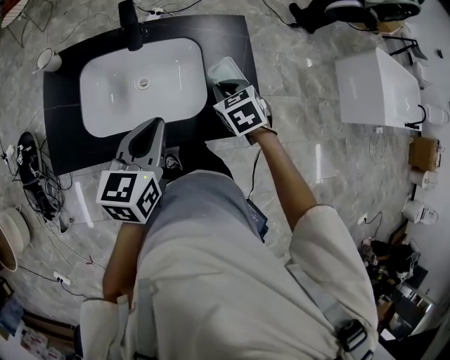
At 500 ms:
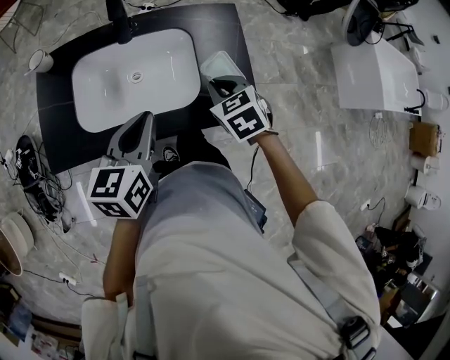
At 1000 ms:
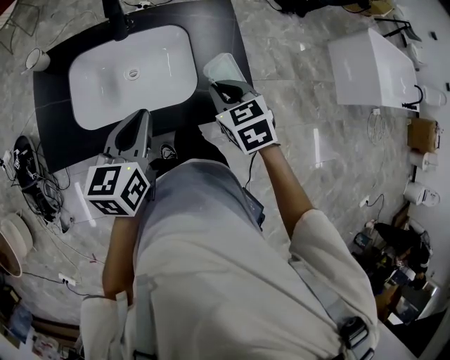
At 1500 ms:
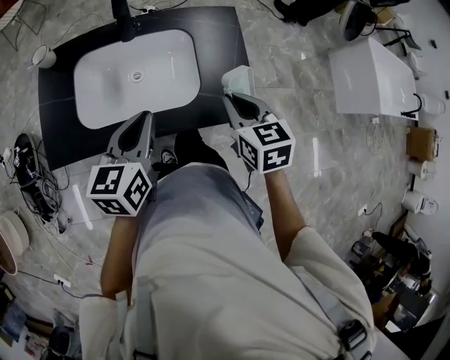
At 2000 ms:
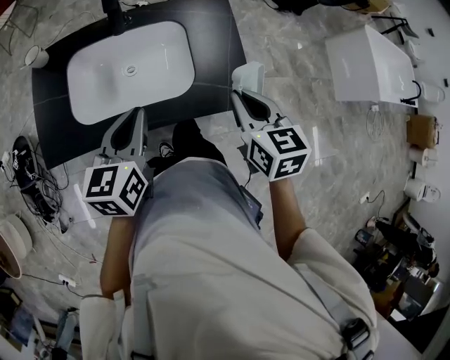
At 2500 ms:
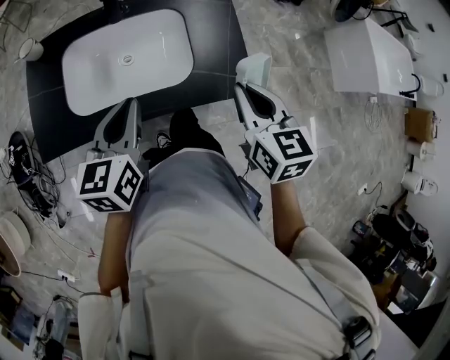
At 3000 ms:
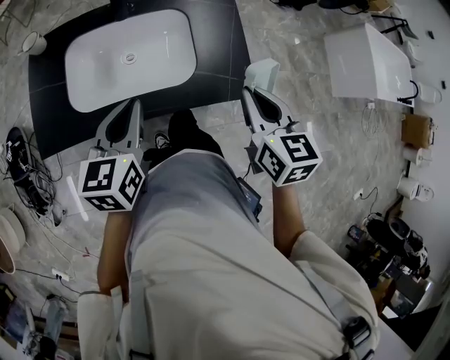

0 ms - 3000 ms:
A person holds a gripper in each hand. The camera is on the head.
0 ms - 1500 ms: The right gripper heads backward and upward, covering about 15 cm, and swivels approximately 20 degrees.
1500 ms - 3000 ms: The right gripper ends up about 5 cm from where it was.

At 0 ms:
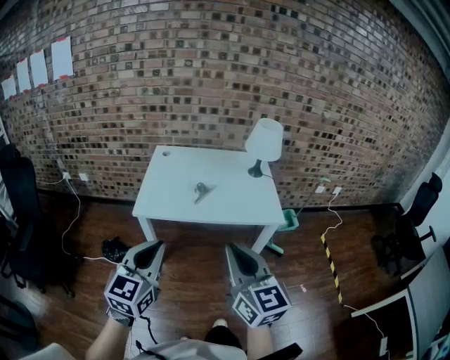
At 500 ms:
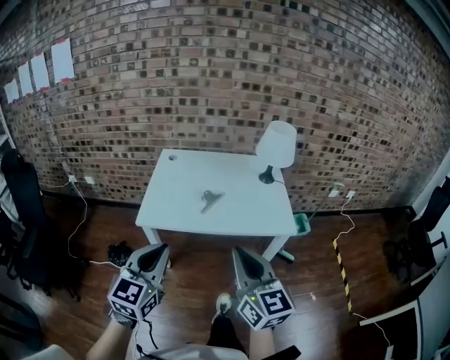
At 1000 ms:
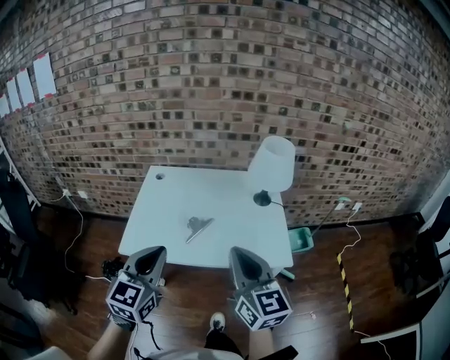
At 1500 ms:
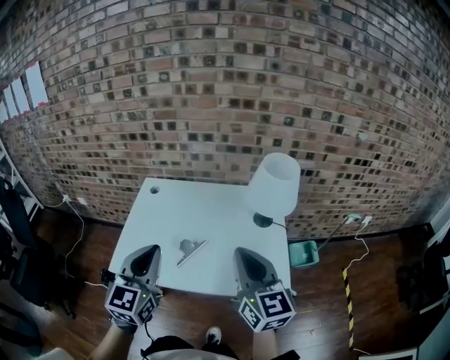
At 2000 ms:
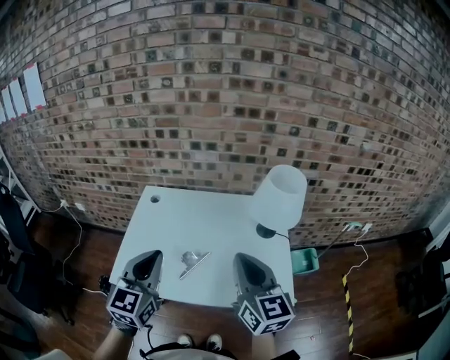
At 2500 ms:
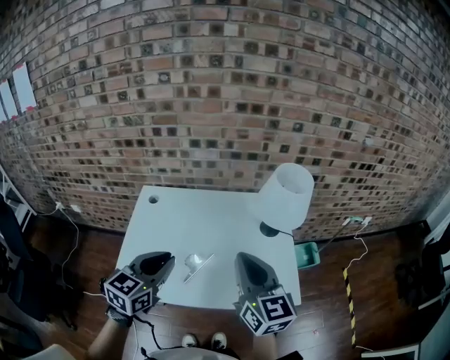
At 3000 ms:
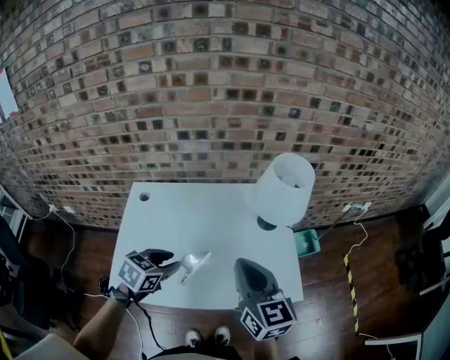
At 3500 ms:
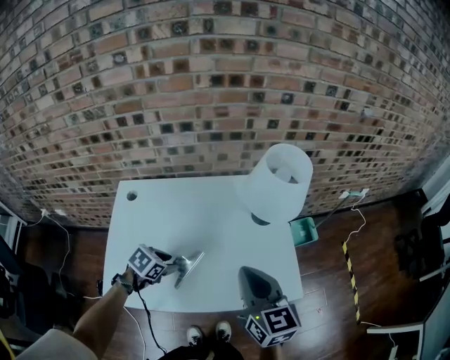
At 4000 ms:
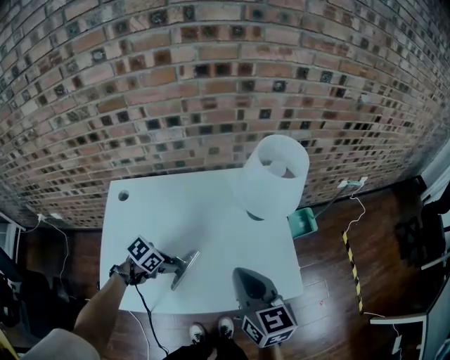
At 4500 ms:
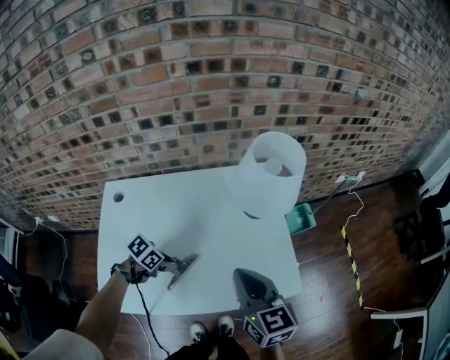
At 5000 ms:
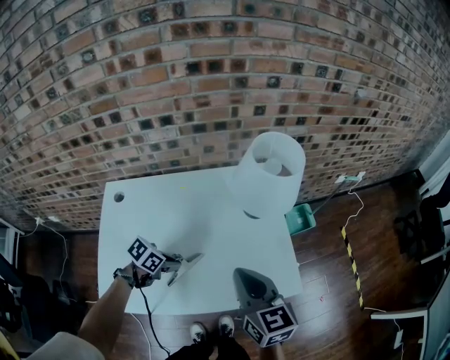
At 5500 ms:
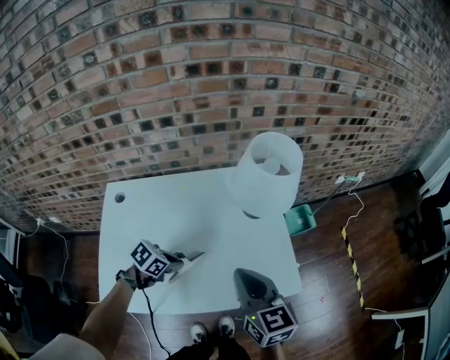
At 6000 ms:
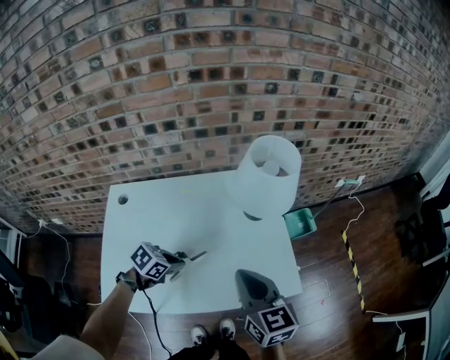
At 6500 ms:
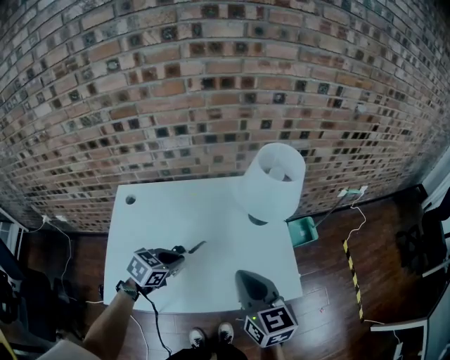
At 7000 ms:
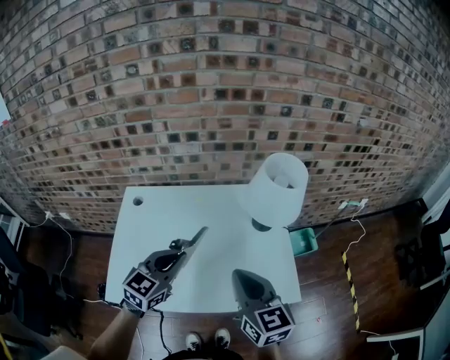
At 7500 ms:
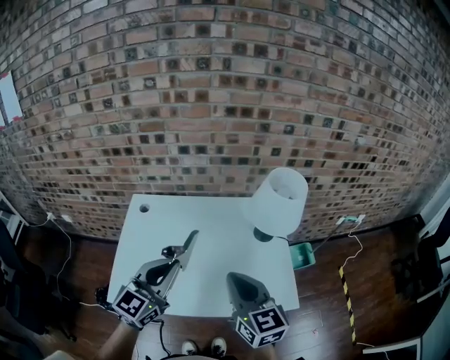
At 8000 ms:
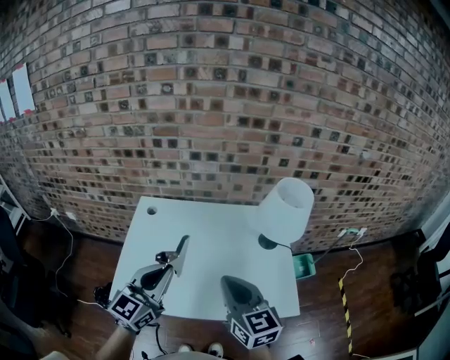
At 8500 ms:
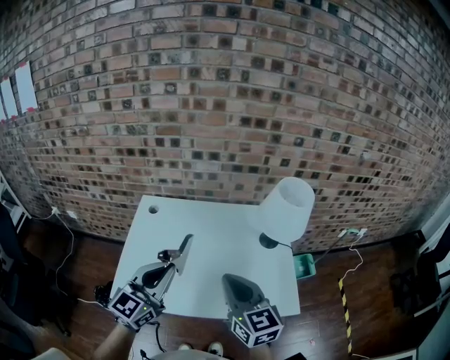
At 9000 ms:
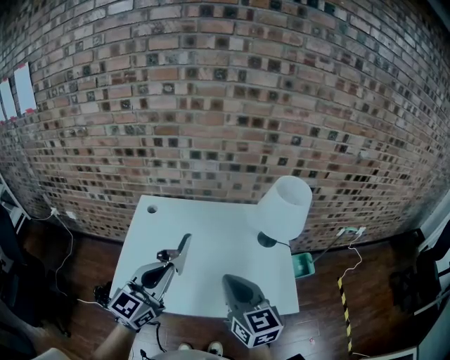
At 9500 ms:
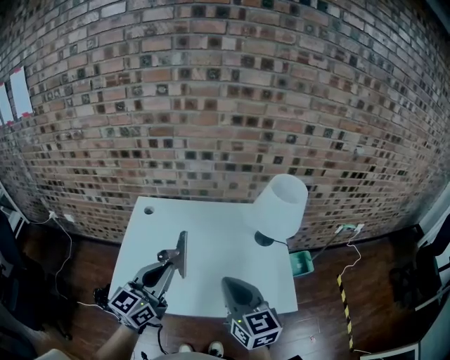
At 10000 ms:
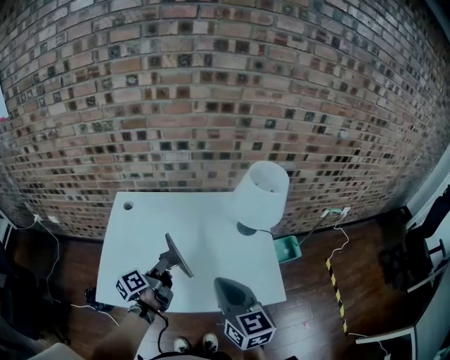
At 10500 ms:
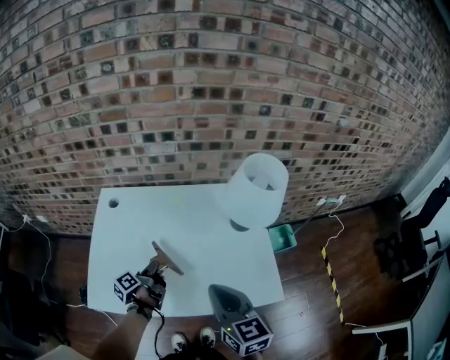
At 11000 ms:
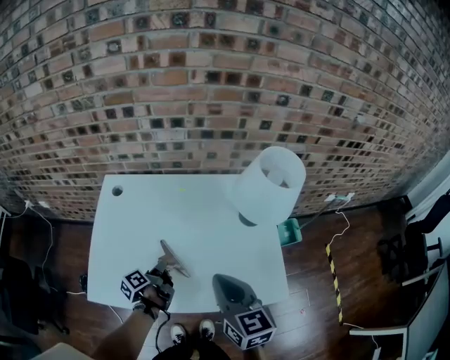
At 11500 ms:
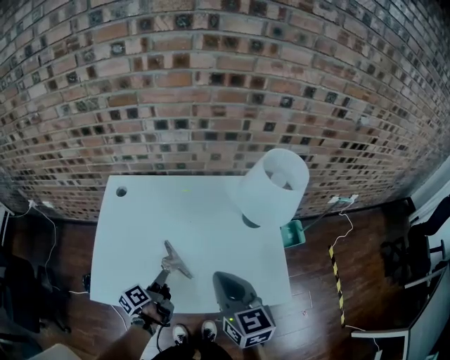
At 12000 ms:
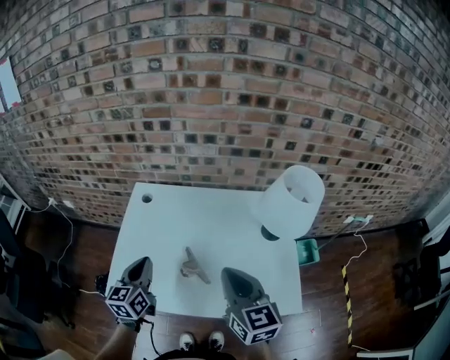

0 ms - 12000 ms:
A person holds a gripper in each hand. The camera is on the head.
0 ms - 2000 ms: Both grippers travel together forward, about 40 cm.
2000 ms - 4000 ms: The right gripper is displaced downward by roughly 10 cm, while the left gripper is displaced downward by roughly 35 cm, points its fingers about 60 degrees further downward, and opens up.
4000 ms - 6000 ms: The left gripper shifts by some 5 cm, and closes its fingers.
6000 ms - 8000 ms: The right gripper moves about 10 cm, while the left gripper moves upward, some 25 cm, and points its fingers about 60 degrees further upward.
8000 ms - 10000 ms: The left gripper is displaced downward and forward by about 20 cm, and twists some 70 degrees counterclockwise, seen from behind. Meanwhile the right gripper changes place by about 5 cm.
10000 ms - 12000 ms: The right gripper goes about 5 cm forward, while the left gripper shifts roughly 10 cm to the left, moves roughly 15 cm downward and comes back, rolls clockwise, seen from behind, by roughly 50 degrees, and opens and closes again.

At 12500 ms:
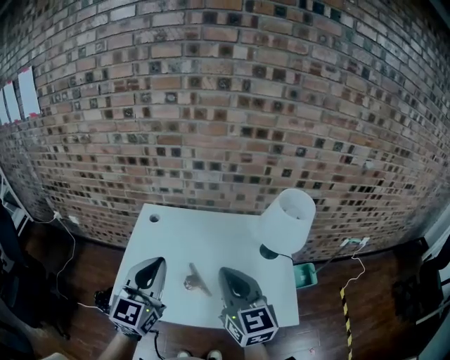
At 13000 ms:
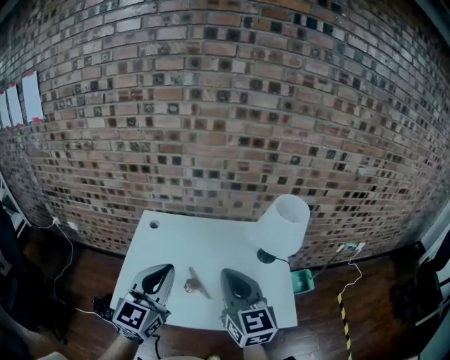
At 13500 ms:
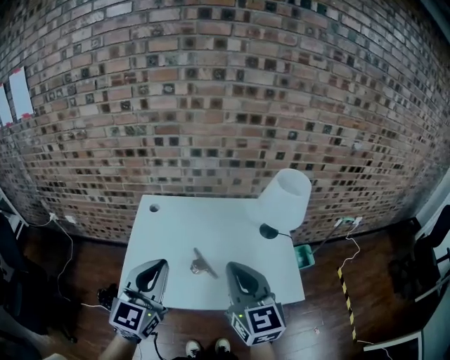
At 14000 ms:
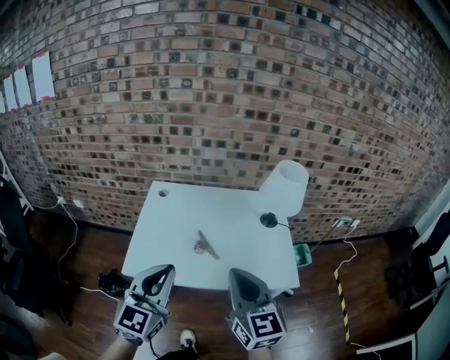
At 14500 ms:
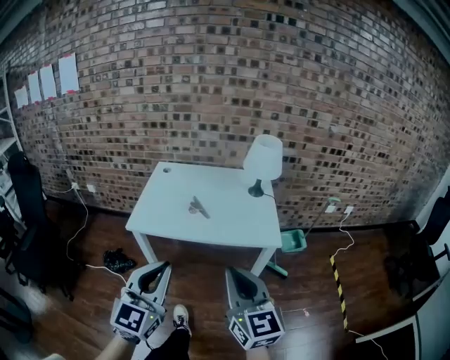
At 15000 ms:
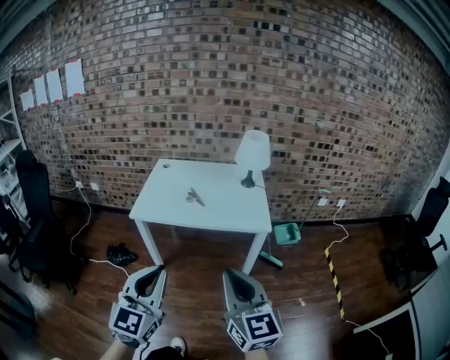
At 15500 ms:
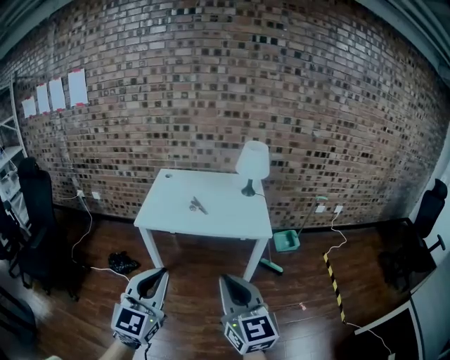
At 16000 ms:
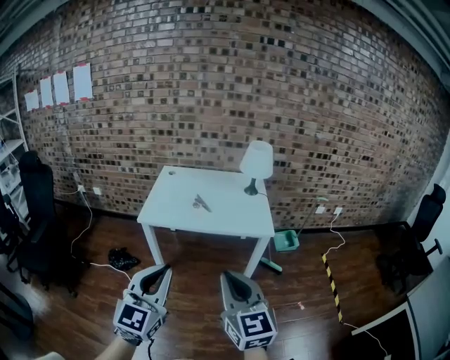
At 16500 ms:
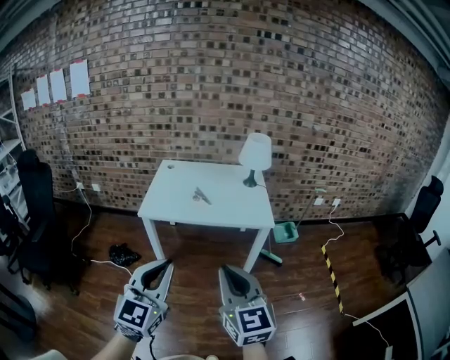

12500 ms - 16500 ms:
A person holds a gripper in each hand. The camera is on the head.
12500 ms - 14500 ms: The two grippers travel together, backward, approximately 40 cm.
14500 ms - 16500 ms: Both grippers travel together backward, roughly 15 cm.

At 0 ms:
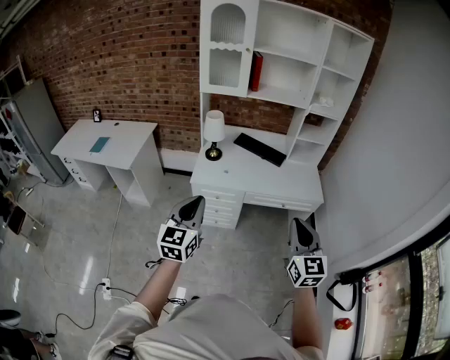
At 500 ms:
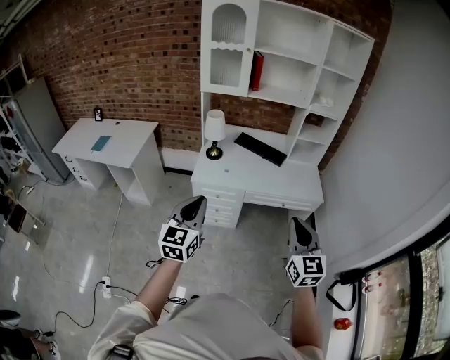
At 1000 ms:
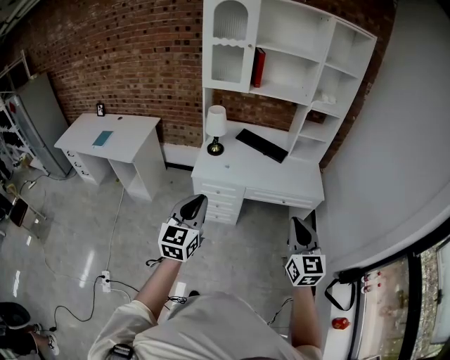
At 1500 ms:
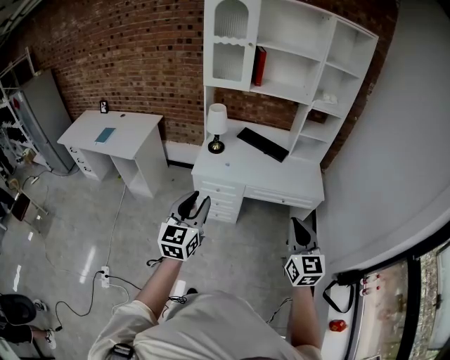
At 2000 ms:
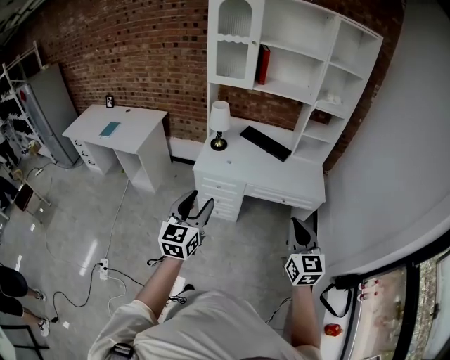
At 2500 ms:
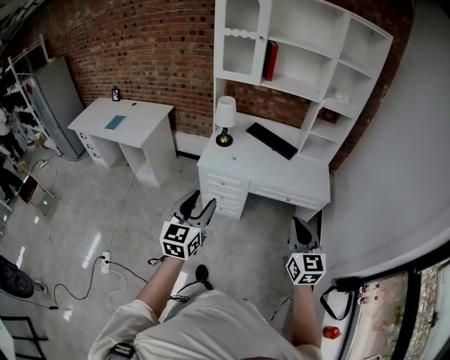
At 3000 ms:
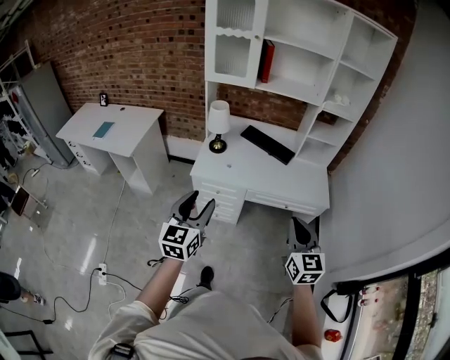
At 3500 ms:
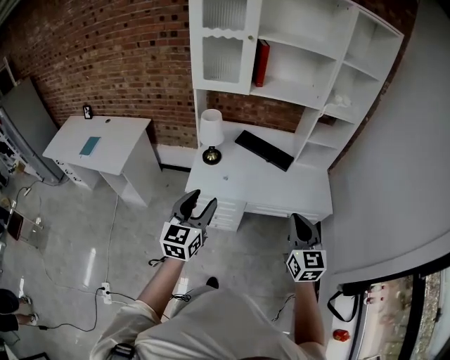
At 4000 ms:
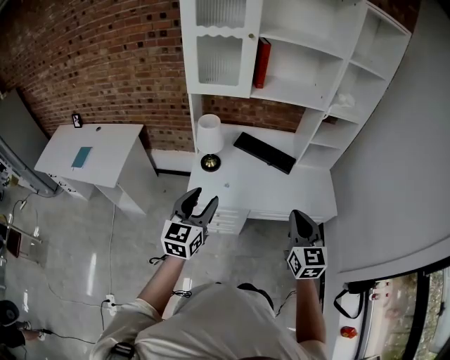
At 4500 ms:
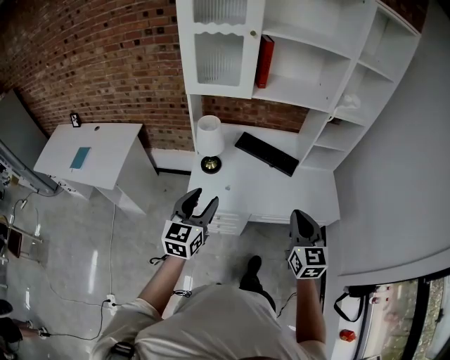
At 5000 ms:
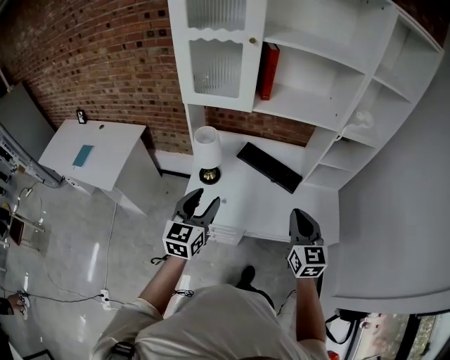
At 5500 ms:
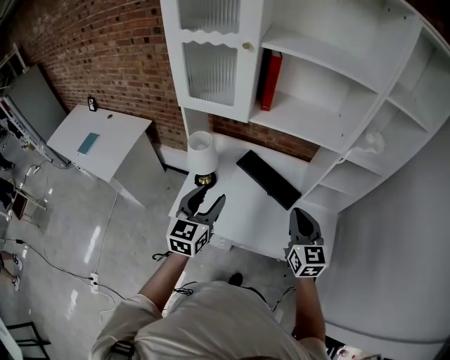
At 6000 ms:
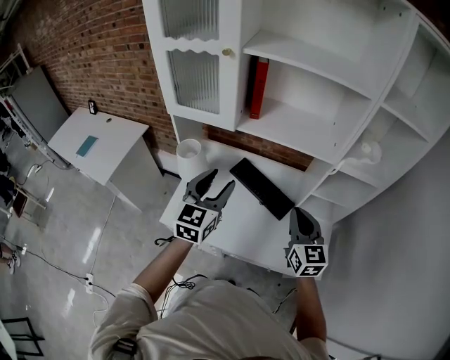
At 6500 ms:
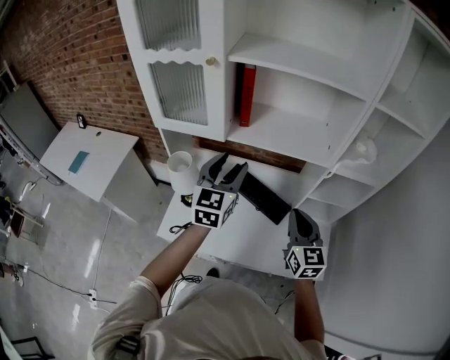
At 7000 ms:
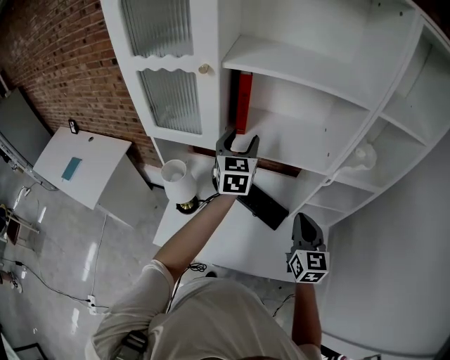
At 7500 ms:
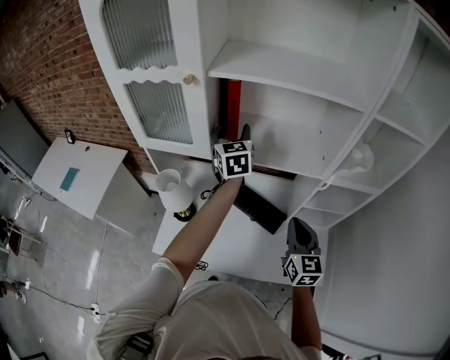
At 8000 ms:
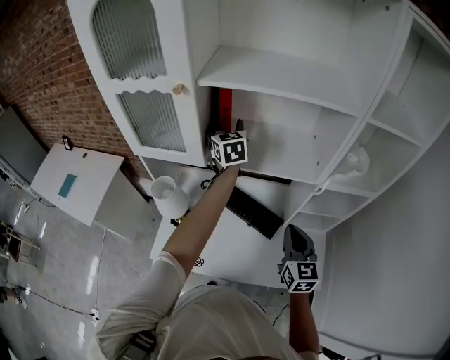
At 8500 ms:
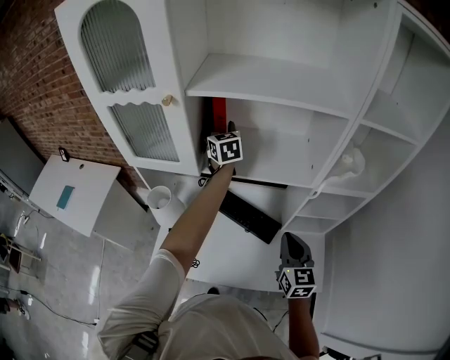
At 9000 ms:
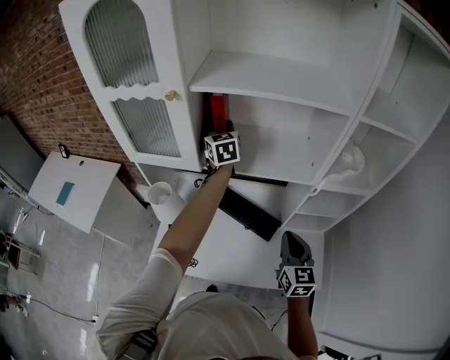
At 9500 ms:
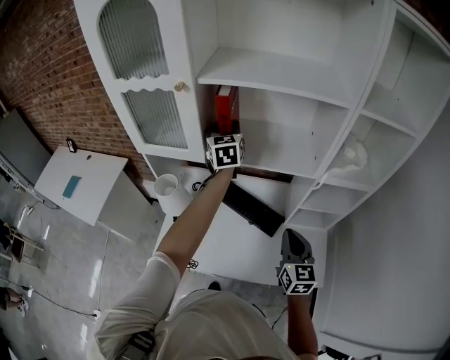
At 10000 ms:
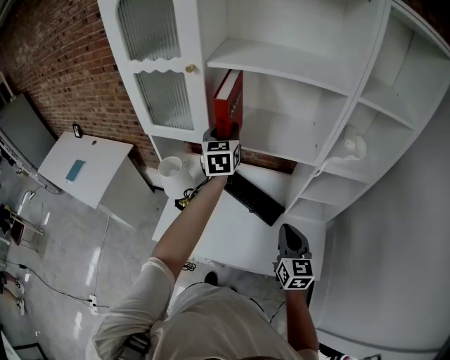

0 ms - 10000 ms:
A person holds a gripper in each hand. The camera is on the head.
0 ms - 2000 ms: The two grippers go some 5 cm to the right. The left gripper opens its fingers.
2000 ms - 4000 ms: The grippers both shift forward by roughly 30 cm.
4000 ms - 6000 ms: The grippers both shift forward and to the right by some 35 cm.
6000 ms - 8000 ms: The right gripper goes roughly 5 cm forward. The left gripper shifts some 35 cm forward, and changes its angle by some 20 degrees.
8000 ms - 10000 ms: The right gripper moves backward, about 5 cm. Meanwhile the left gripper heads backward, covering about 10 cm, and closes.
